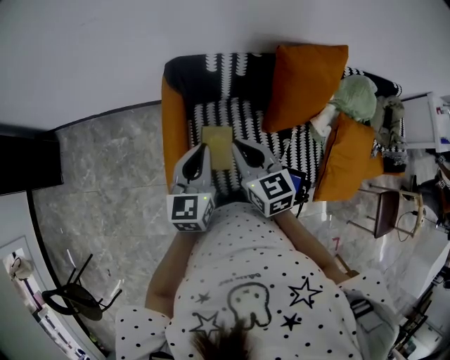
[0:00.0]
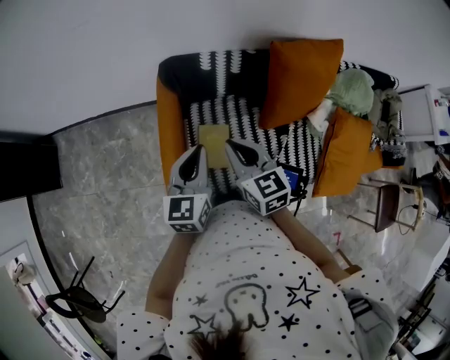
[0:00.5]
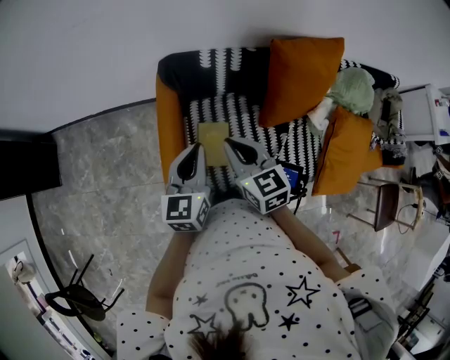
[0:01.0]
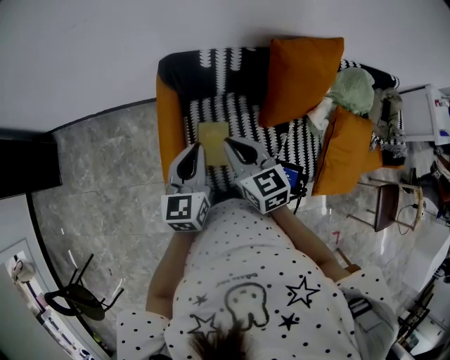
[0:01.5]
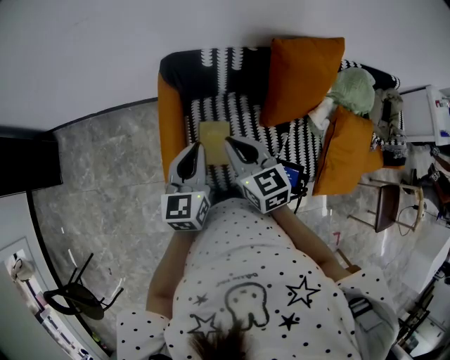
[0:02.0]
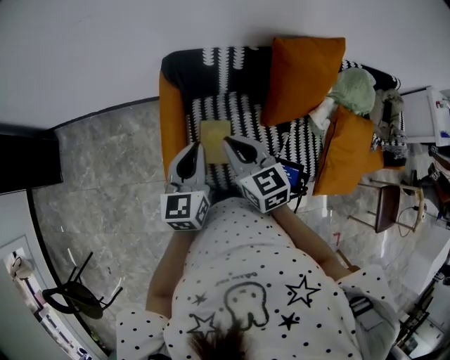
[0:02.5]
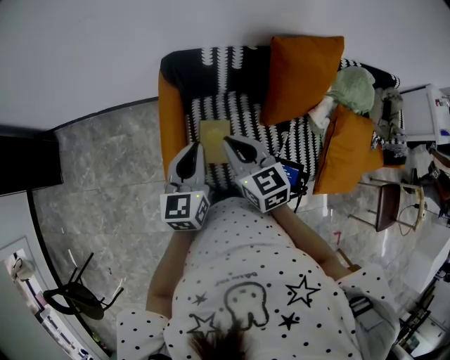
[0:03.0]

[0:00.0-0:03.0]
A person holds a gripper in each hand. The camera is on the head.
0:00.0 to 0:01.5: The two grippers keep their place.
0:01.5 to 0:03.0: There are only small adjustments of the grippers.

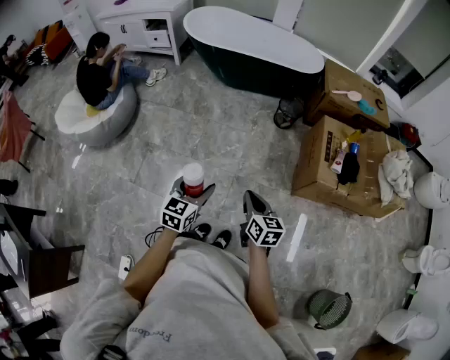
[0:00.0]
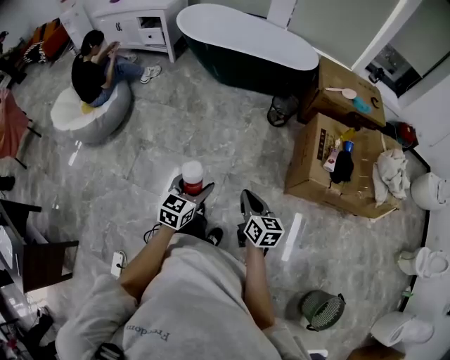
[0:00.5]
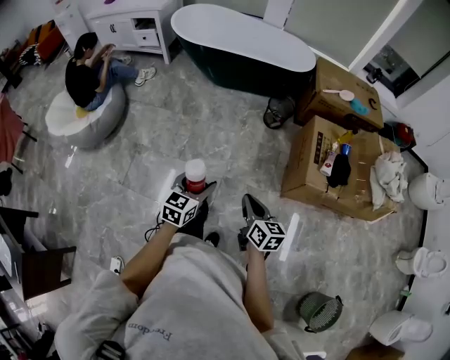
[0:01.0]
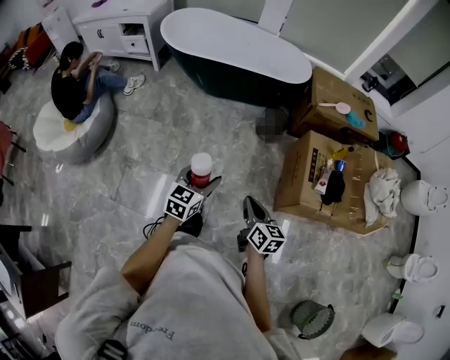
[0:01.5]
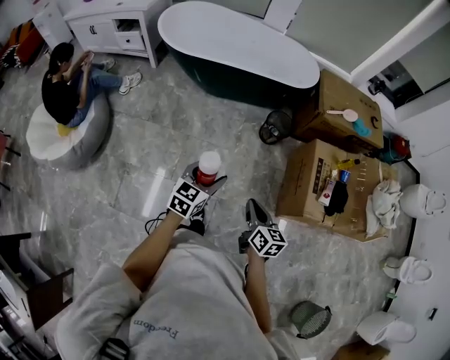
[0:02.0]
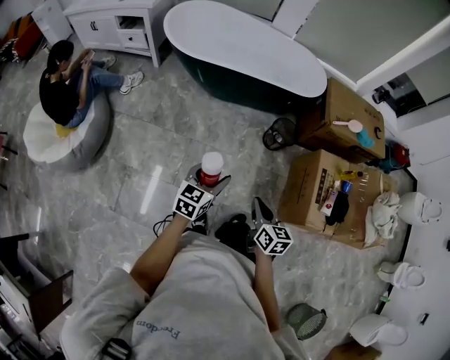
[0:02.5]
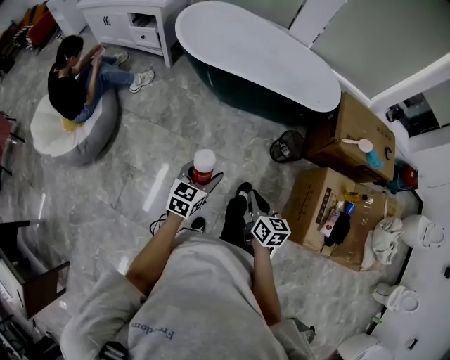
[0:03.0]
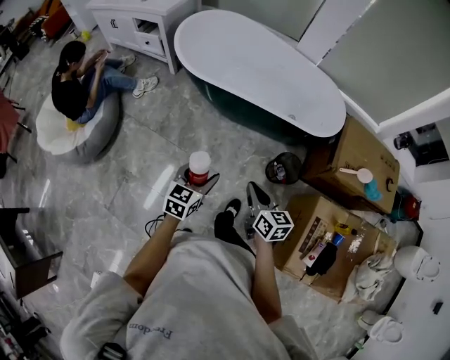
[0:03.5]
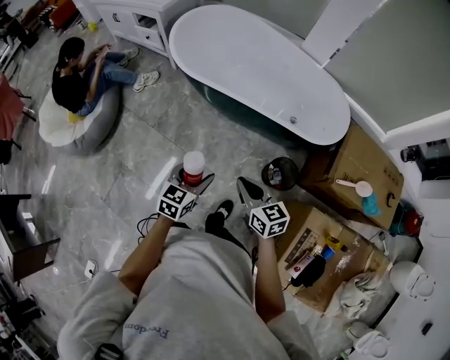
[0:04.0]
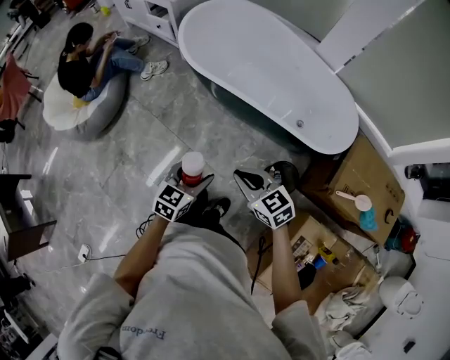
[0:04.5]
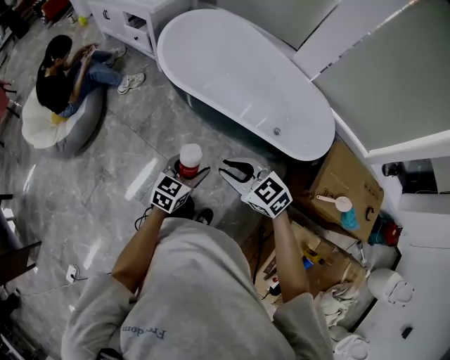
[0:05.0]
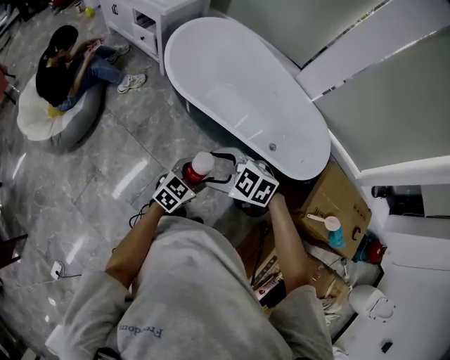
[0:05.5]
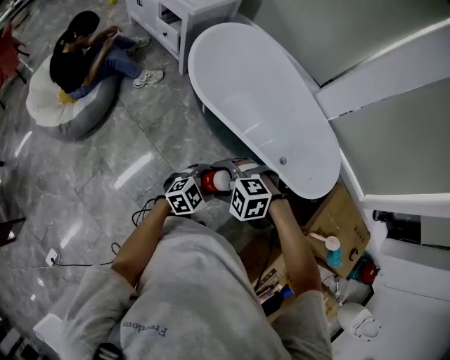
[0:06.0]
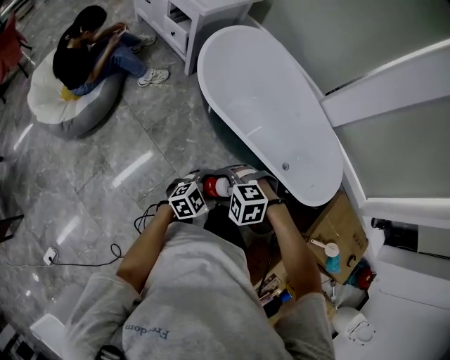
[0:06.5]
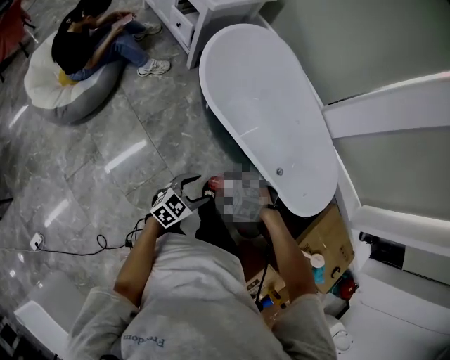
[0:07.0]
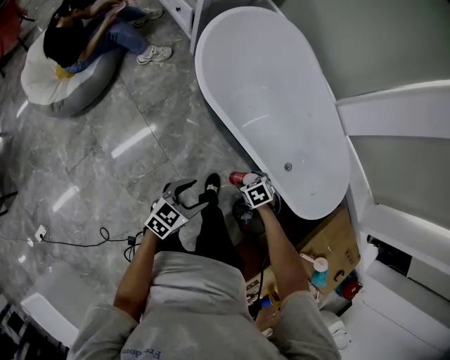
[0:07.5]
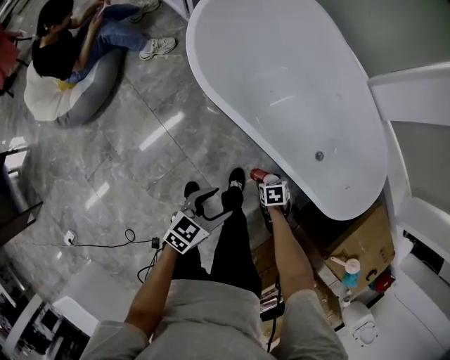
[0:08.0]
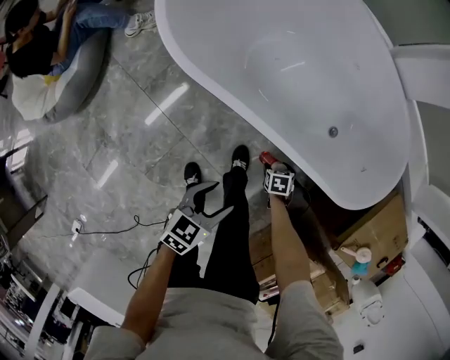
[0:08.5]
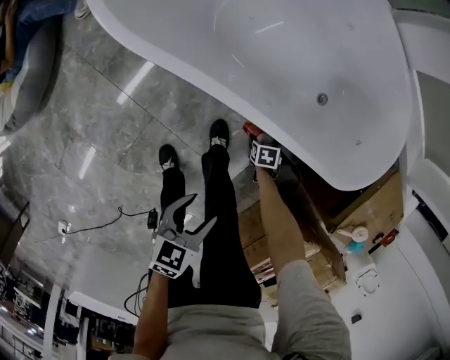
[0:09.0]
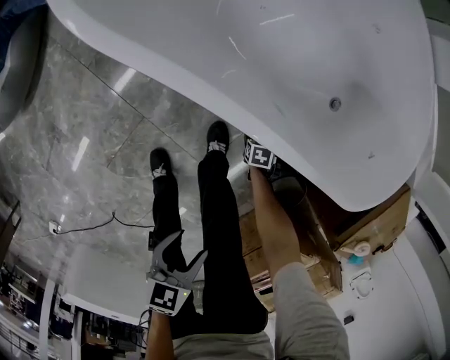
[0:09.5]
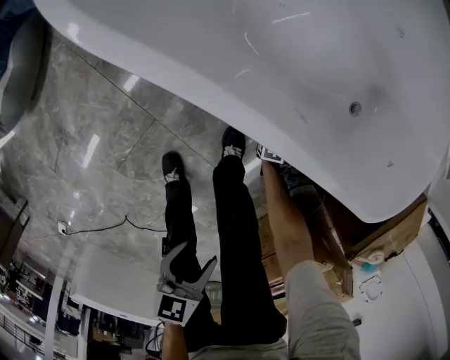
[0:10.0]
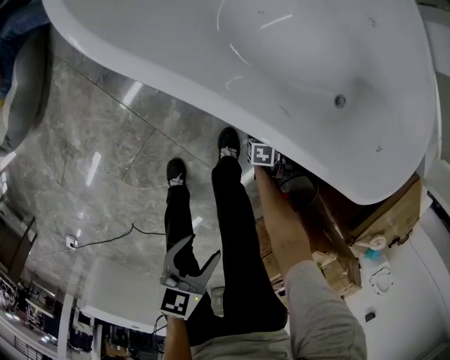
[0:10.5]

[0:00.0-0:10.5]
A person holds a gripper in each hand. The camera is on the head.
0:00.0 to 0:02.0: Both grippers travel together forward, about 30 cm.
0:02.0 to 0:04.0: The right gripper ends up about 40 cm from where it was, and rotates approximately 40 degrees, while the left gripper moves approximately 30 cm, and rotates approximately 20 degrees.
0:04.0 to 0:06.5: The left gripper ends up roughly 15 cm from where it was, and rotates about 30 degrees. The right gripper reaches roughly 5 cm upward, then returns, tilts its fingers about 50 degrees downward, and opens its fingers.
0:06.5 to 0:08.5: The left gripper is displaced downward by approximately 20 cm, and rotates approximately 40 degrees. Meanwhile the right gripper goes approximately 50 cm downward, and rotates around the line of its fingers by approximately 100 degrees, clockwise from behind.
0:08.5 to 0:10.5: The right gripper goes some 20 cm downward; the left gripper changes place by about 10 cm, and turns by approximately 20 degrees.

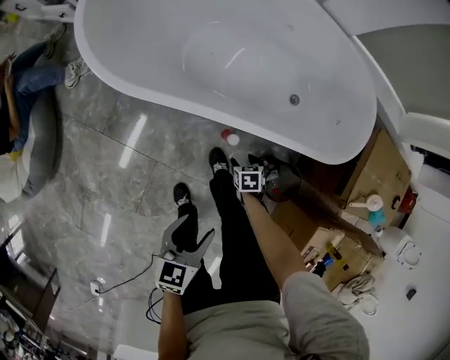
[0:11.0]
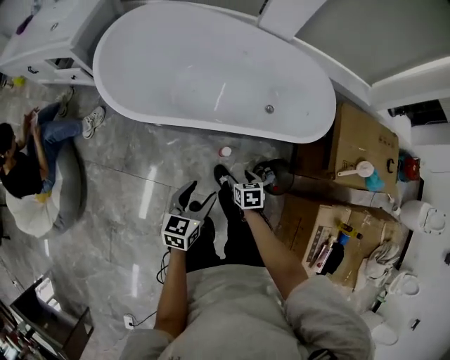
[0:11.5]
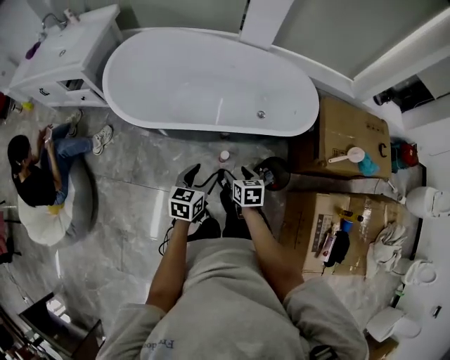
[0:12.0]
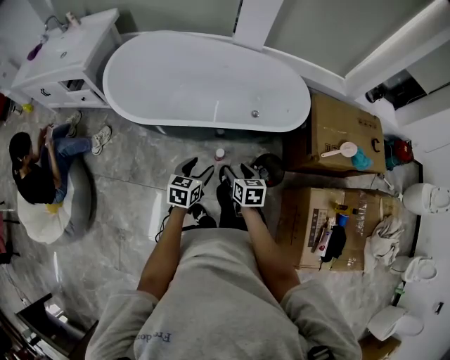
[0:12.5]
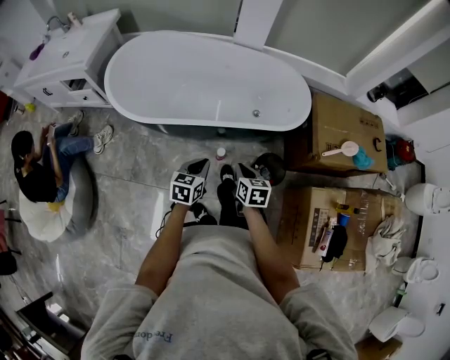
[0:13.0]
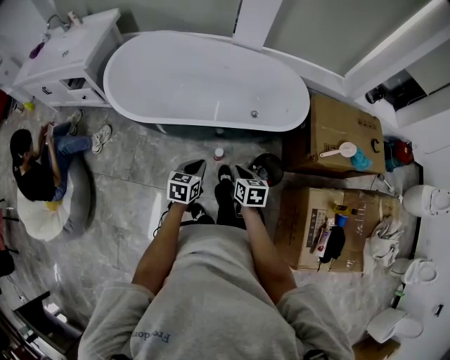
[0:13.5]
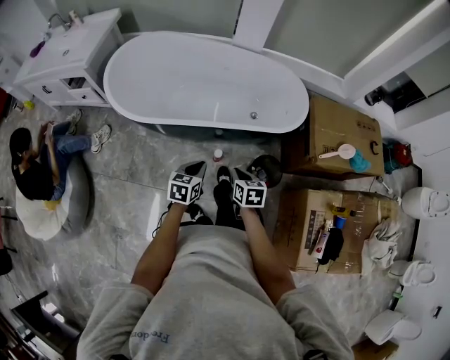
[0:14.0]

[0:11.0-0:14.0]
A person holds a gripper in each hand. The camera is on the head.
0:11.0 to 0:12.5: The right gripper shifts approximately 35 cm upward, and points its fingers some 30 degrees further upward. The left gripper heads upward, covering some 10 cm.
0:12.5 to 0:14.0: The right gripper closes up, while the left gripper closes.

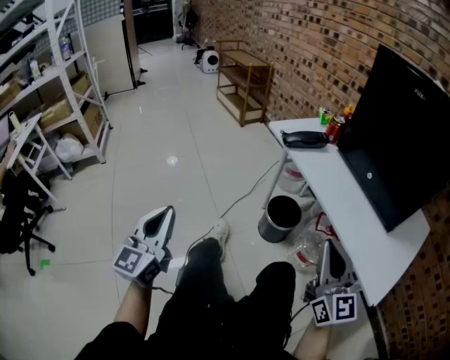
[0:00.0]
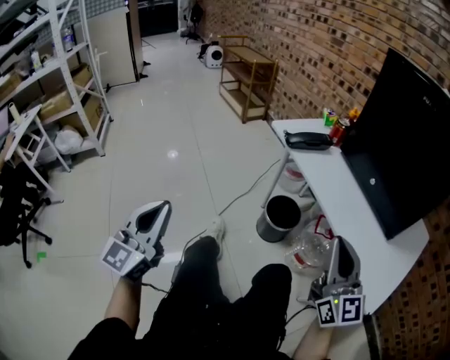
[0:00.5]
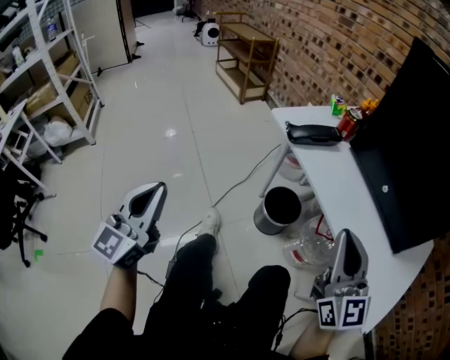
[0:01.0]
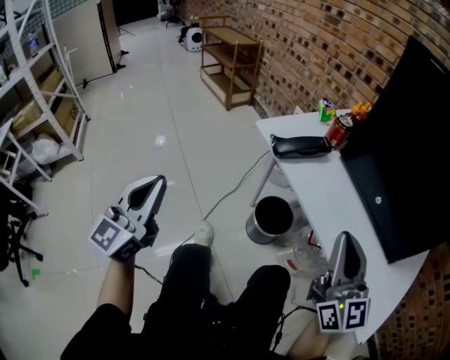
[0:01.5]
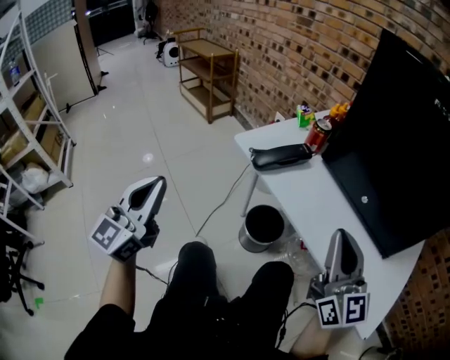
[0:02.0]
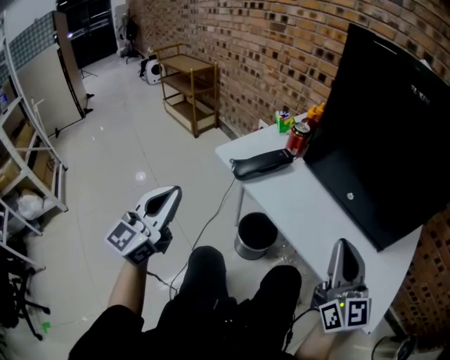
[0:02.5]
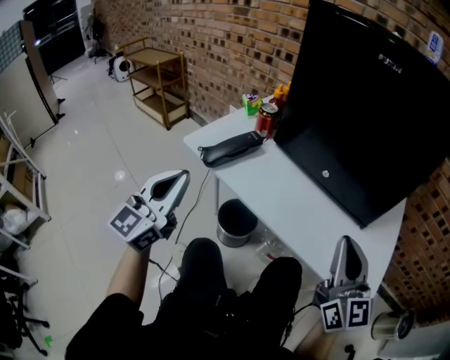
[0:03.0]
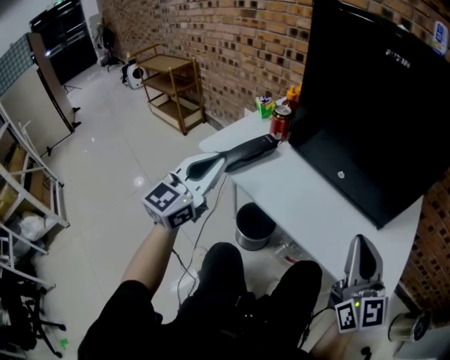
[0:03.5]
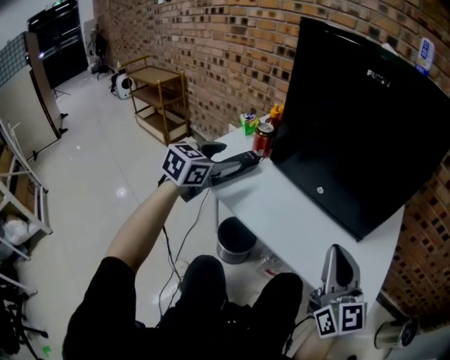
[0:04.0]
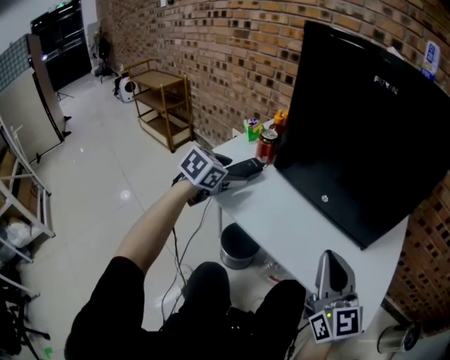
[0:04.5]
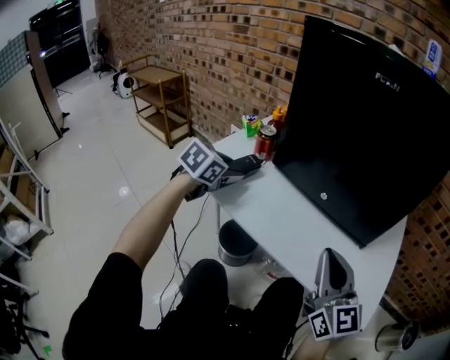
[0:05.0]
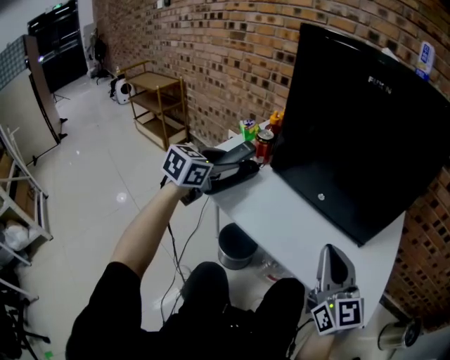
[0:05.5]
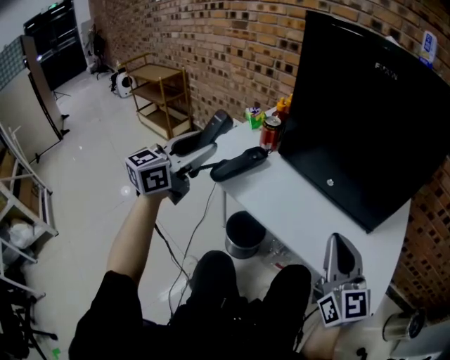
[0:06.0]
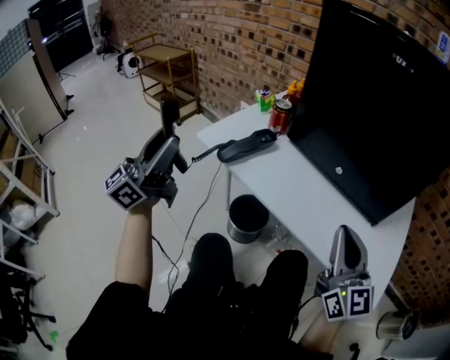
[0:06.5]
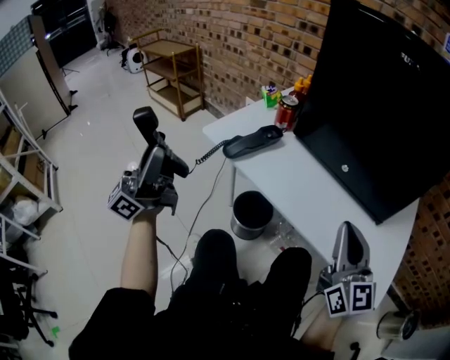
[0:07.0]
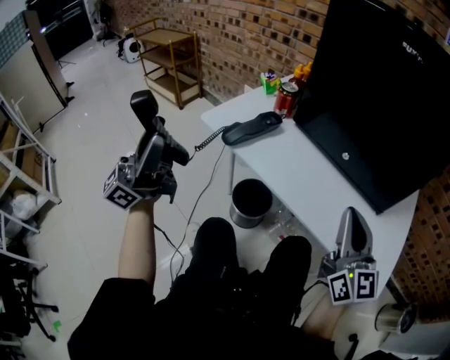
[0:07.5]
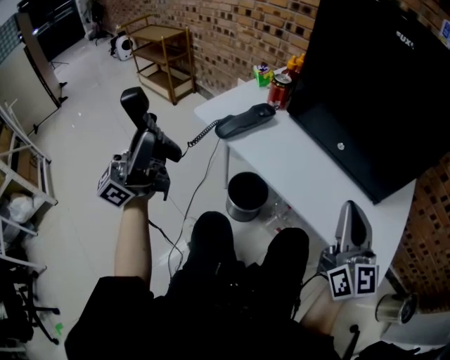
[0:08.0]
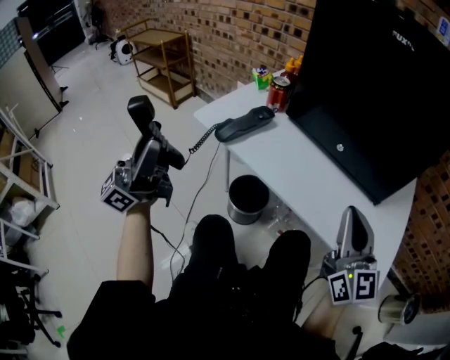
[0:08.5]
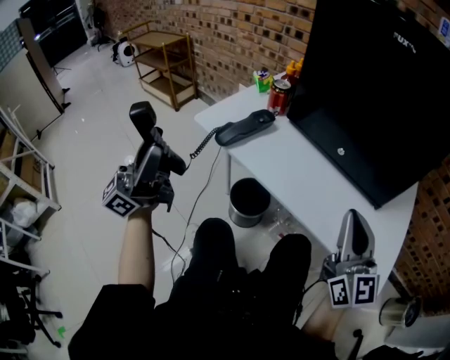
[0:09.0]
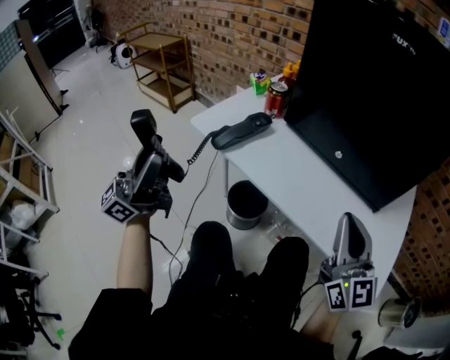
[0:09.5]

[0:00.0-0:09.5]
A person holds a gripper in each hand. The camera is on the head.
0:00.0 to 0:02.0: The left gripper heads forward, covering about 25 cm, and swivels about 20 degrees; the right gripper moves forward, approximately 15 cm.
0:02.0 to 0:04.0: The right gripper travels to the right by some 10 cm, while the left gripper heads forward and to the right, covering approximately 35 cm, angles its fingers downward, by approximately 30 degrees, and opens its fingers.
0:05.5 to 0:07.5: The left gripper goes approximately 30 cm backward, to the left and upward, and angles its fingers upward, by approximately 70 degrees.
0:07.5 to 0:09.5: The grippers move only a little.
